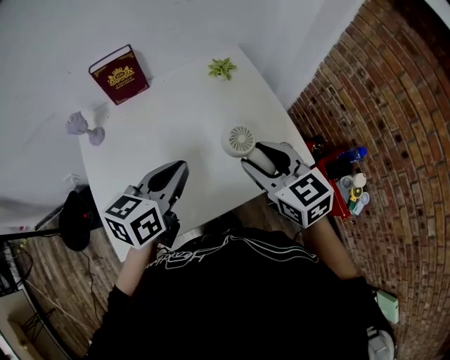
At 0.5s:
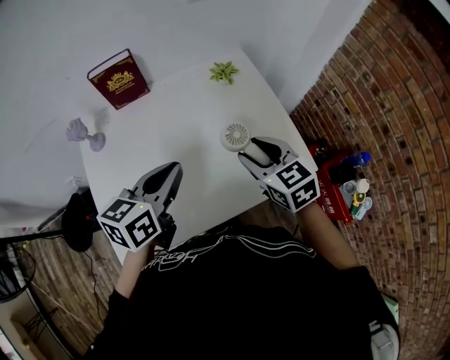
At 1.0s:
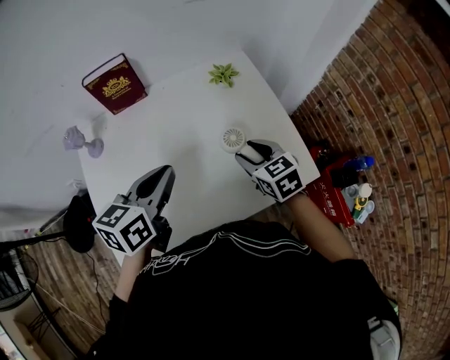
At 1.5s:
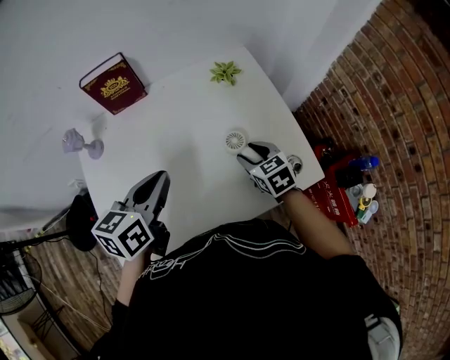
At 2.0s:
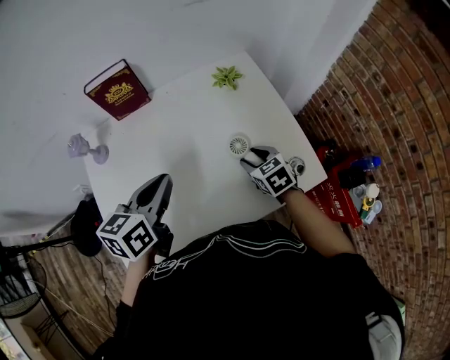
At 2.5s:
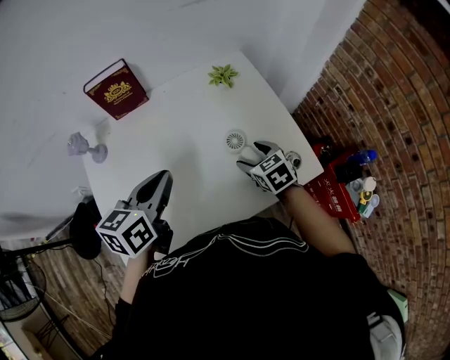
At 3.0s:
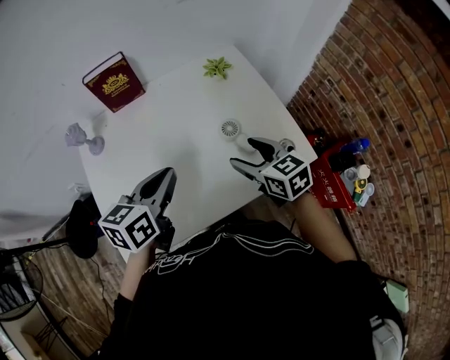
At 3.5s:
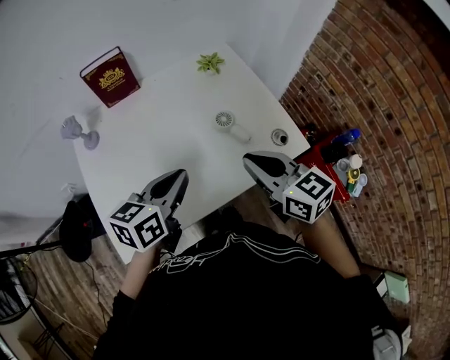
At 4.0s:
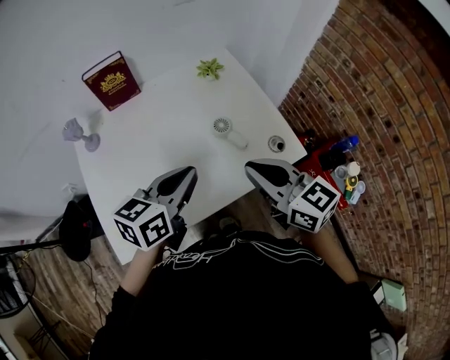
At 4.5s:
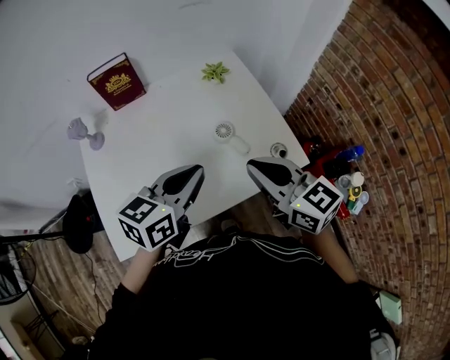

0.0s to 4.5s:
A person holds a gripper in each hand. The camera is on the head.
0.0s to 2.0s: The left gripper is displaced forward by roughly 5 cm; the right gripper goes some 25 cm downward and forward, and turns by some 20 degrees.
2.0s to 4.5s: The left gripper heads to the right and backward, covering roughly 15 cm. Meanwhile the right gripper goes some 25 cm upward and backward, points its fingers some 40 degrees further upward, and closes up.

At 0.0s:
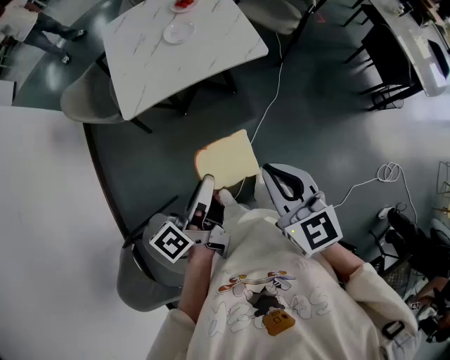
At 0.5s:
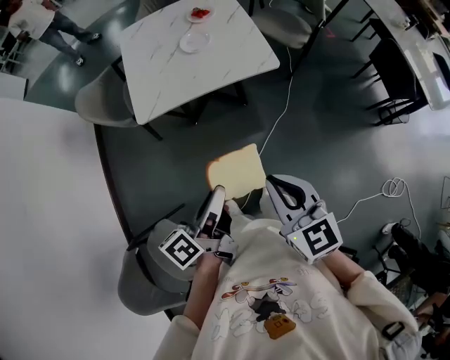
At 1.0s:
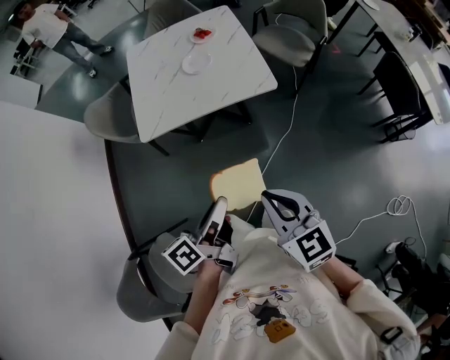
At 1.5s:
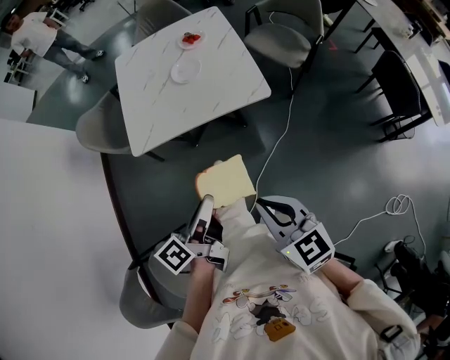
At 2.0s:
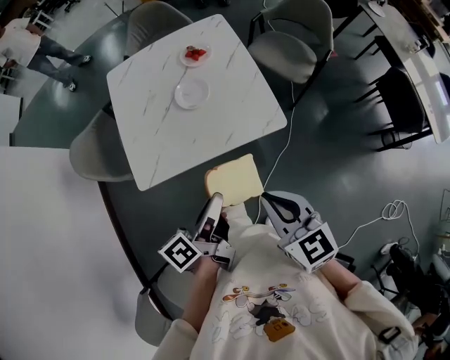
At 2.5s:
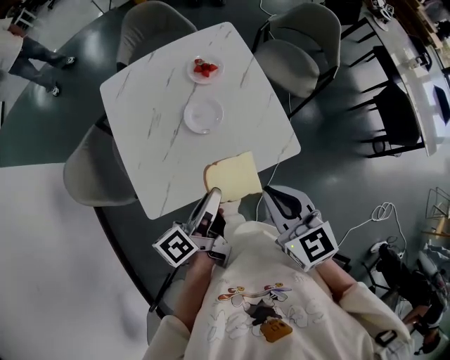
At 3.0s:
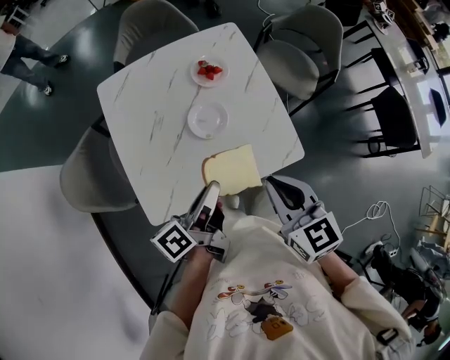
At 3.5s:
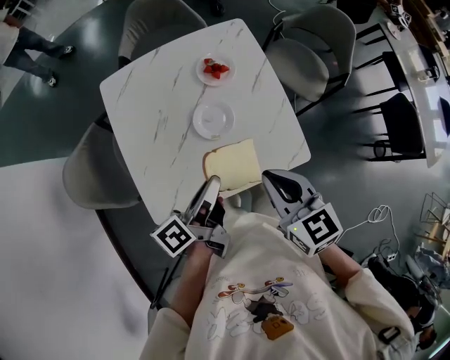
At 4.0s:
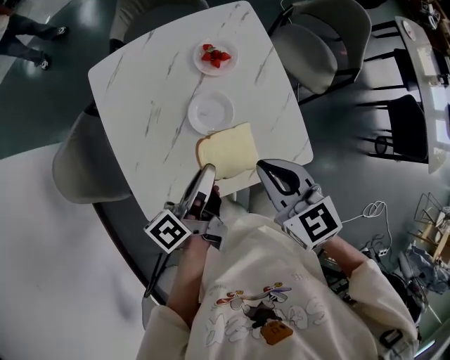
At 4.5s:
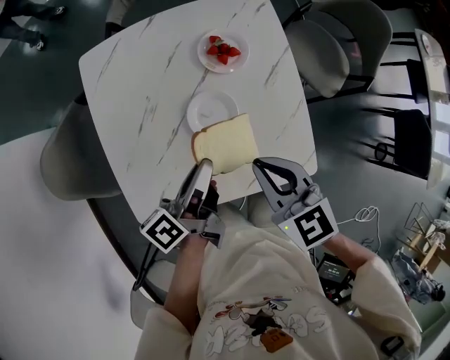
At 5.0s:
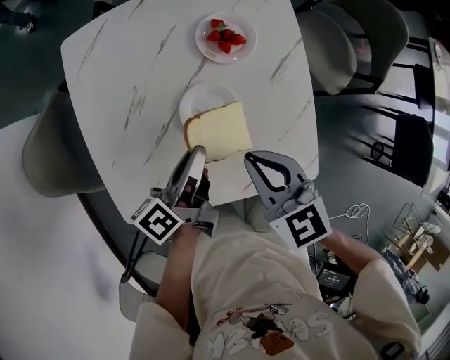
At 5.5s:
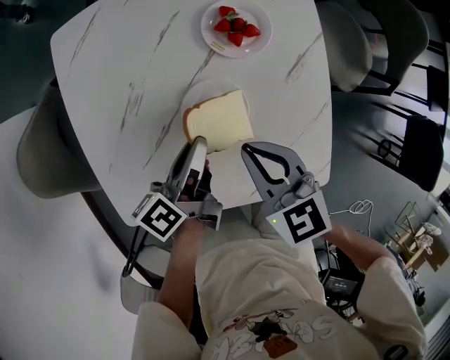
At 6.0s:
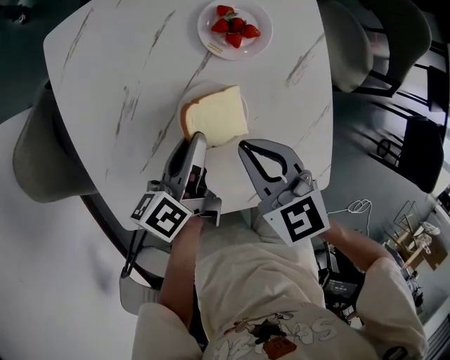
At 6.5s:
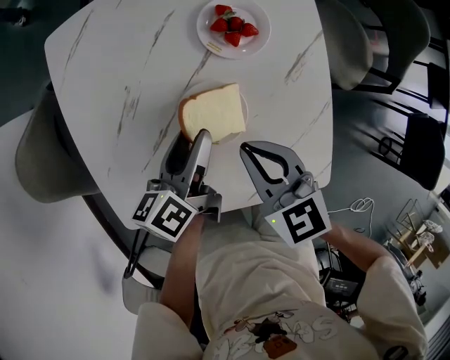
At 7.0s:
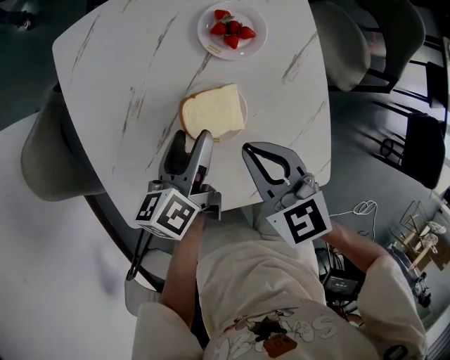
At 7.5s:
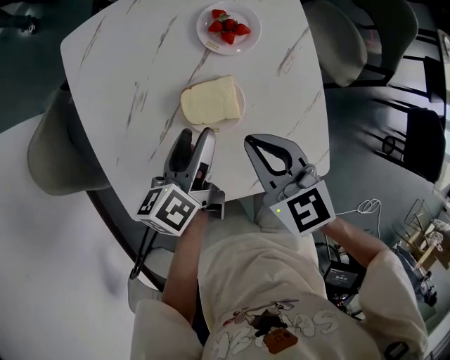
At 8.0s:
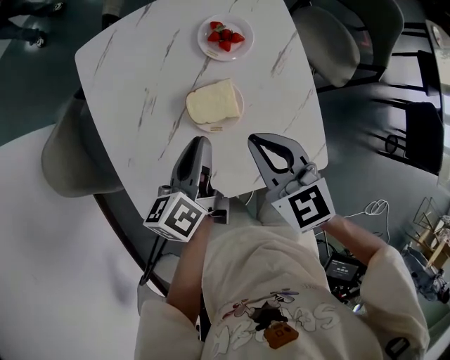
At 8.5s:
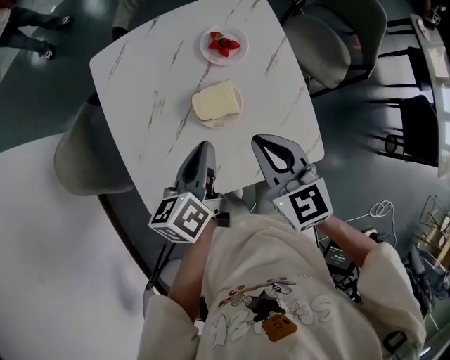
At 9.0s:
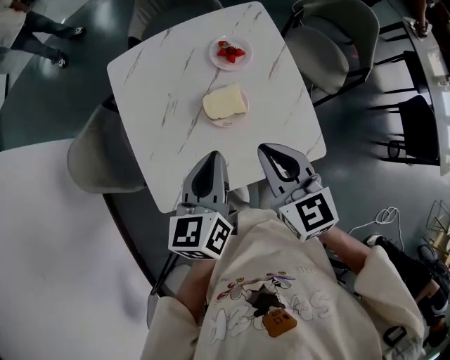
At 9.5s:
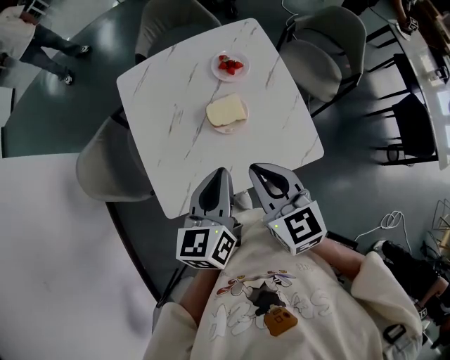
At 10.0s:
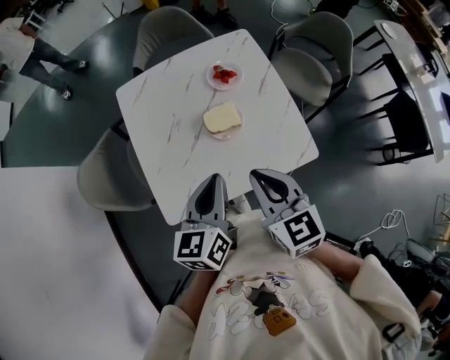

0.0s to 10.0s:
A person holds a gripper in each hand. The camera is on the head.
0.0s to 2.0s: Both grippers travel together forward, about 25 cm.
2.0s to 4.0s: Both grippers travel together forward, approximately 30 cm.
4.0s to 6.0s: The grippers both shift downward and forward by roughly 20 cm.
6.0s to 8.0s: Both grippers travel together upward, about 10 cm. The left gripper opens and closes again.
8.0s to 10.0s: The right gripper goes approximately 20 cm backward and upward. Meanwhile the left gripper is displaced upward and backward by about 20 cm, and turns by roughly 30 degrees.

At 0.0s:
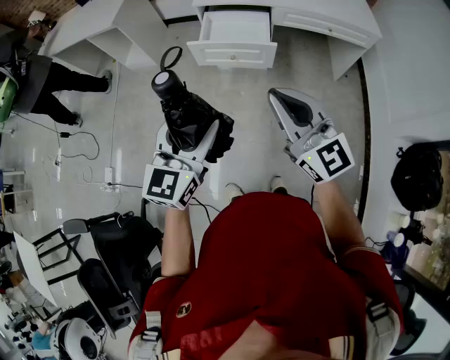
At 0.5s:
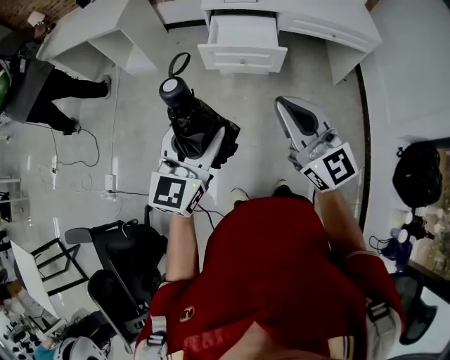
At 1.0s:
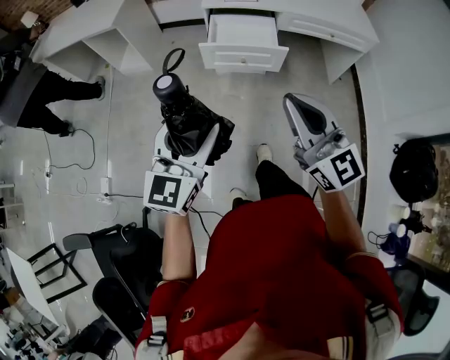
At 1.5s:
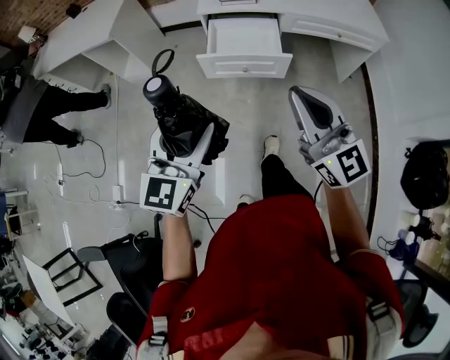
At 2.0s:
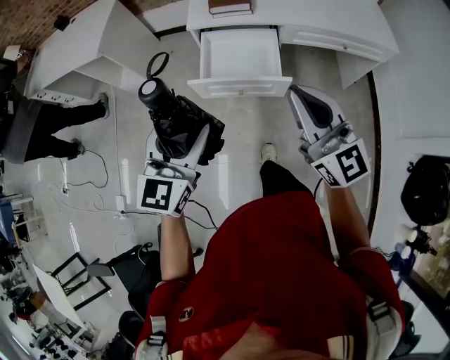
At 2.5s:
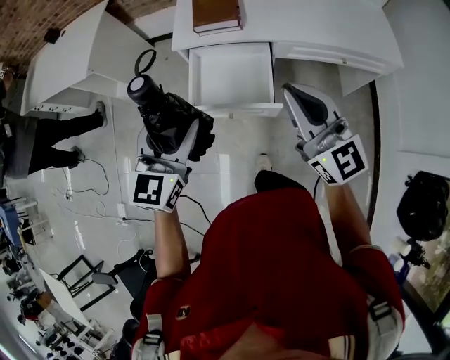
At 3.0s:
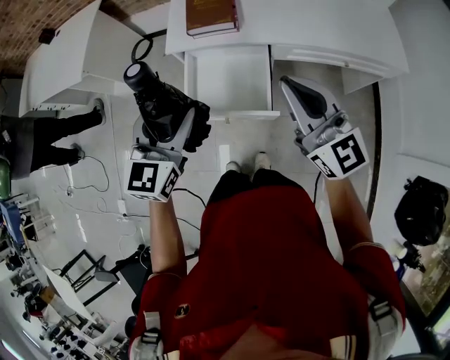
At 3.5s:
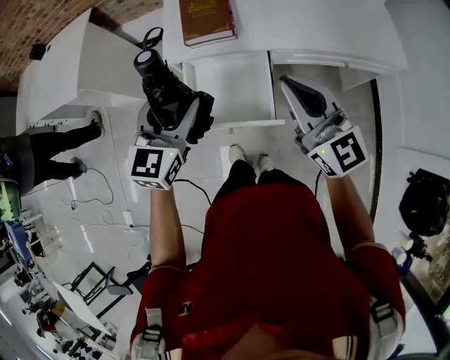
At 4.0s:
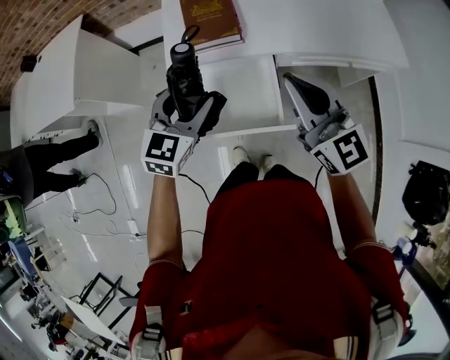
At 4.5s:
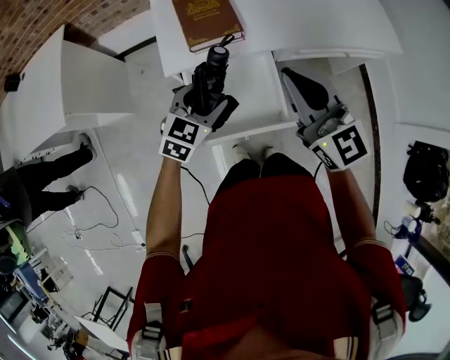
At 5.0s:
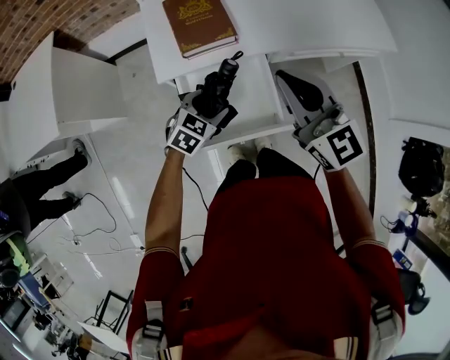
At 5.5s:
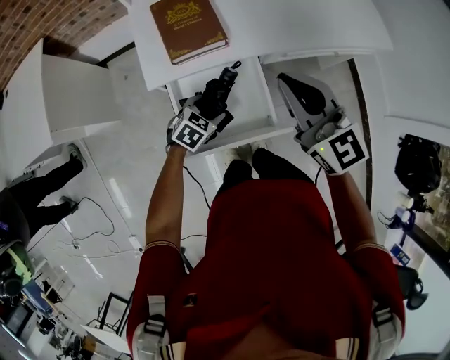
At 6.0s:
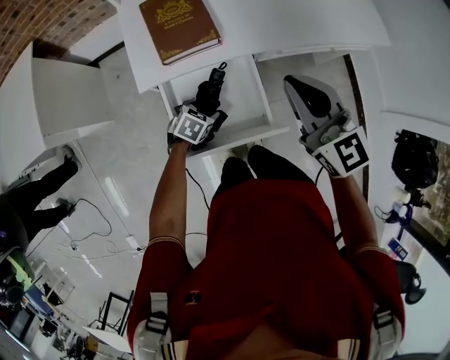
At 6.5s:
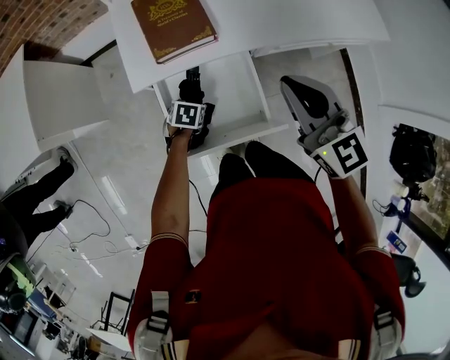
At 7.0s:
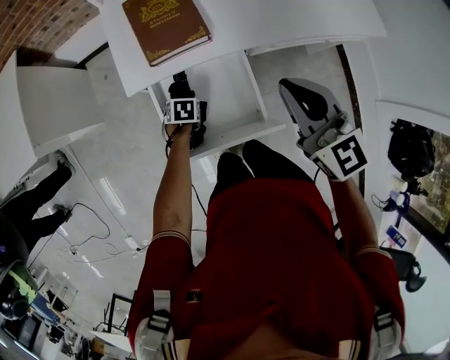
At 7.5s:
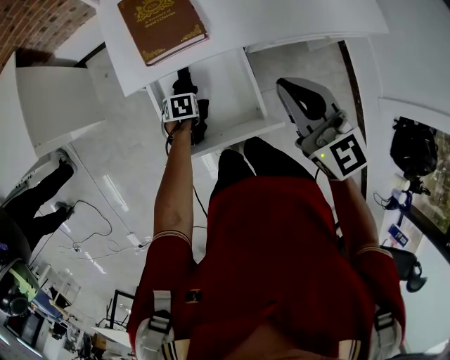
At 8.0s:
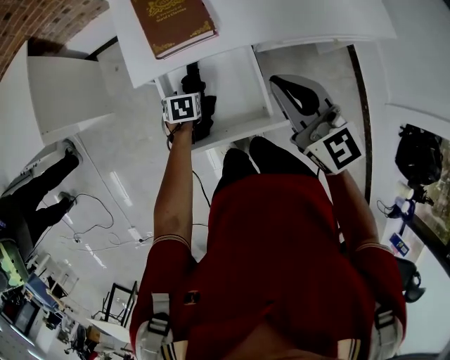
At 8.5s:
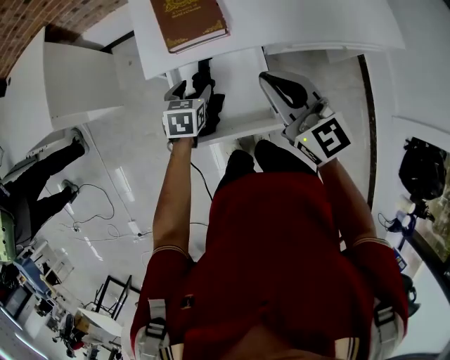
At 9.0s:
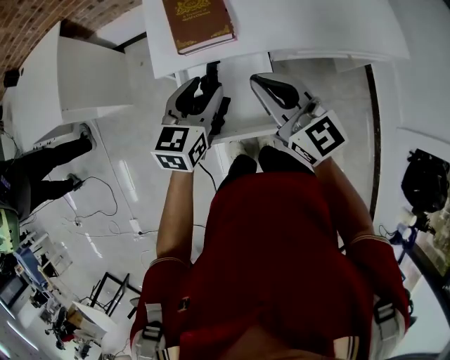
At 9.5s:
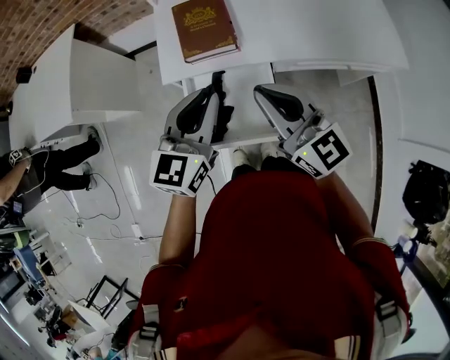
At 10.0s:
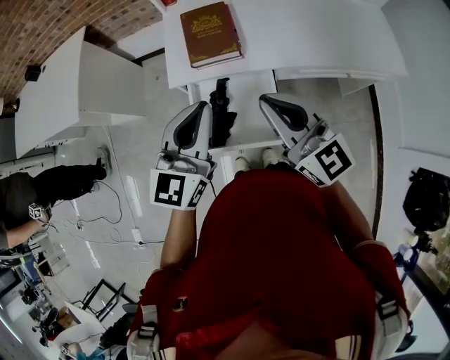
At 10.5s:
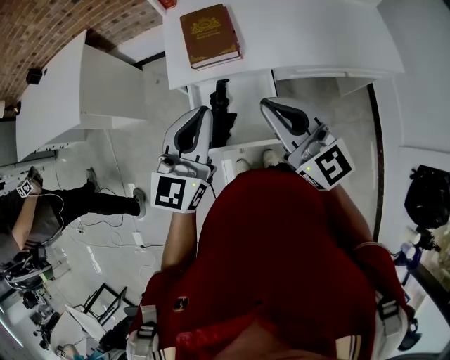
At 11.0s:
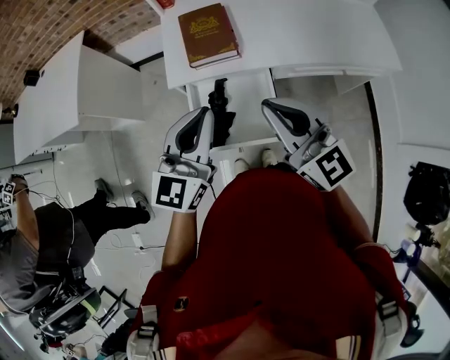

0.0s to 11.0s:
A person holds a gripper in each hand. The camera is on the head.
0.0s to 2.0s: The two grippers go about 25 cm forward.
2.0s to 3.5s: Both grippers move forward, some 25 cm.
3.5s to 5.5s: The left gripper moves downward, roughly 30 cm, and tilts its fingers approximately 30 degrees downward. The right gripper changes place by approximately 10 cm.
5.5s to 7.5s: The left gripper goes some 10 cm downward, and twists roughly 40 degrees counterclockwise, seen from behind. Meanwhile the right gripper ends up roughly 5 cm from where it was.
7.5s to 9.0s: The right gripper changes place by approximately 5 cm; the left gripper heads upward, covering roughly 30 cm, and points its fingers approximately 50 degrees further upward.
9.0s to 11.0s: The left gripper heads upward and backward, covering approximately 15 cm, changes its angle by some 20 degrees, and closes up. The right gripper is displaced upward and backward by roughly 10 cm.

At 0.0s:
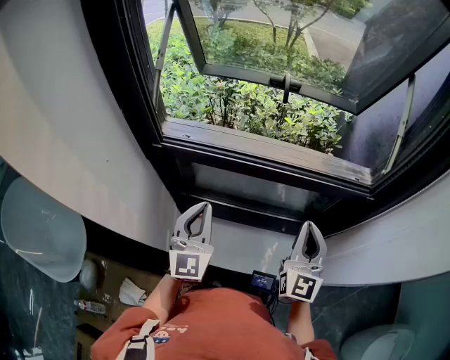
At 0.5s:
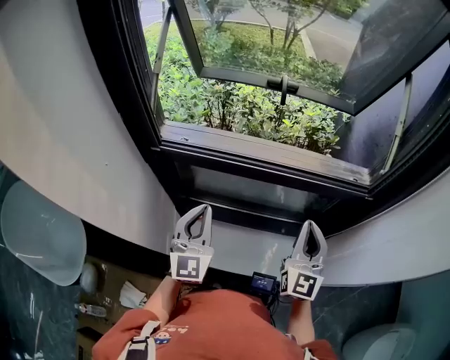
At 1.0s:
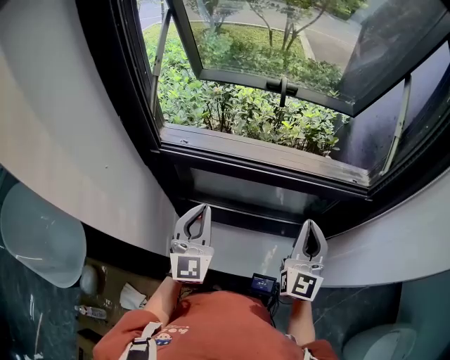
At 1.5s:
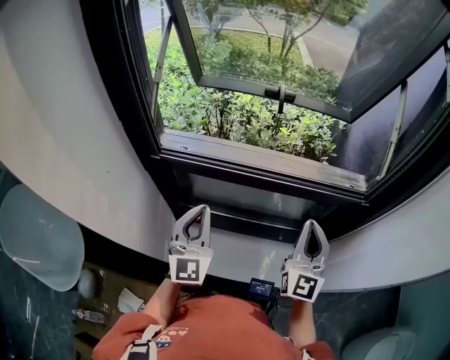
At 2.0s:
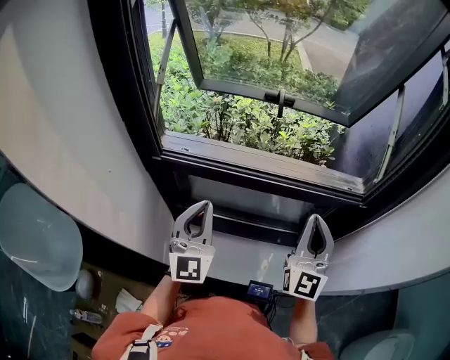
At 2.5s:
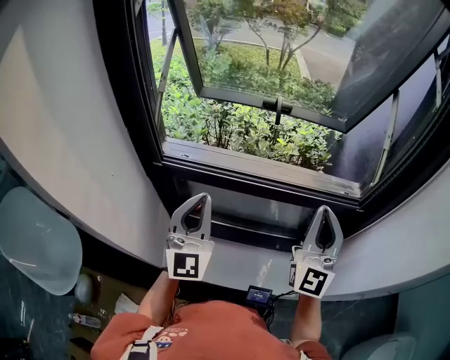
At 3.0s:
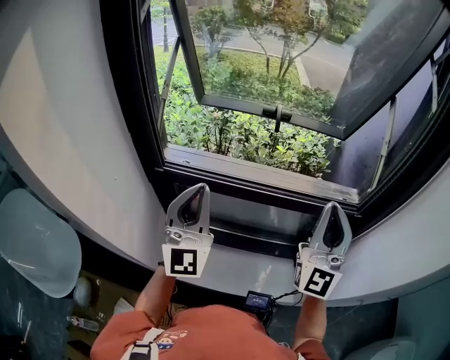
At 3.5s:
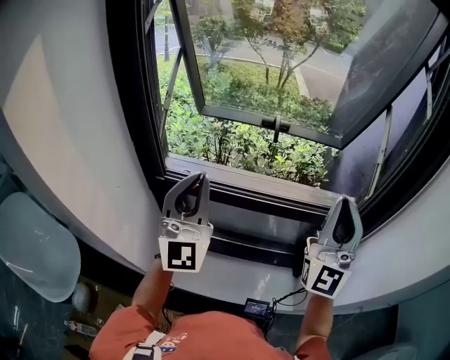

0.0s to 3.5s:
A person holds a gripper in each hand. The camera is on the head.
0.0s to 2.0s: The right gripper travels upward by roughly 5 cm.
2.0s to 3.5s: The two grippers go some 15 cm upward. The left gripper swivels approximately 20 degrees. The right gripper turns by roughly 20 degrees.
